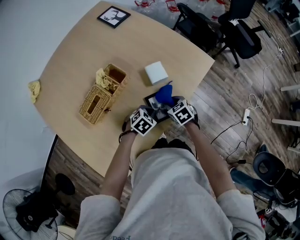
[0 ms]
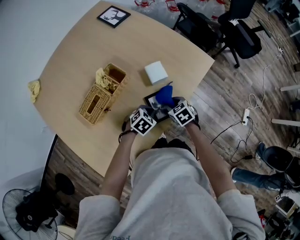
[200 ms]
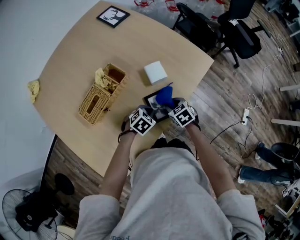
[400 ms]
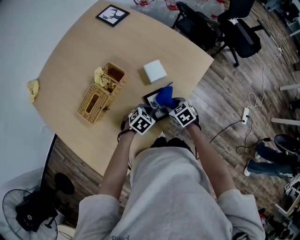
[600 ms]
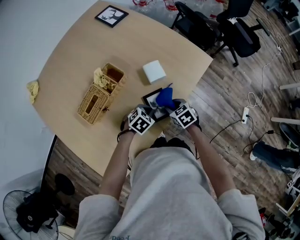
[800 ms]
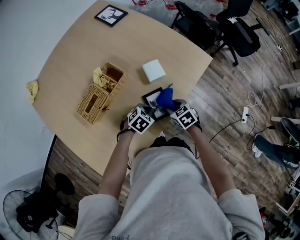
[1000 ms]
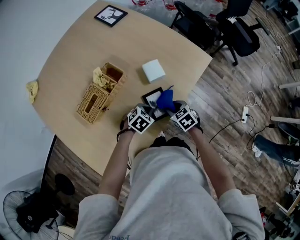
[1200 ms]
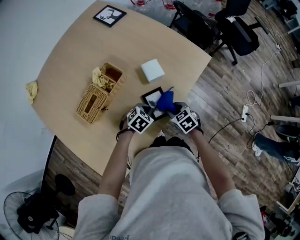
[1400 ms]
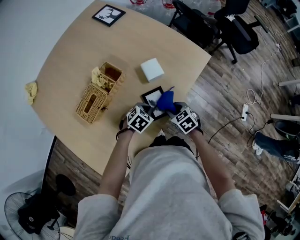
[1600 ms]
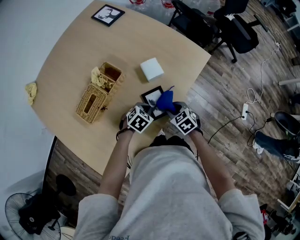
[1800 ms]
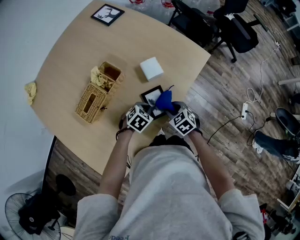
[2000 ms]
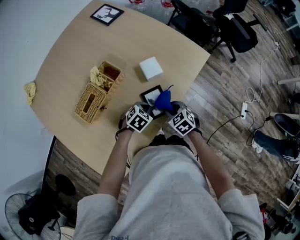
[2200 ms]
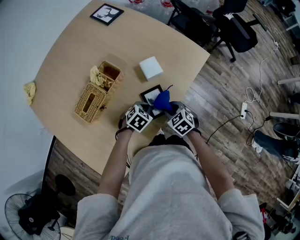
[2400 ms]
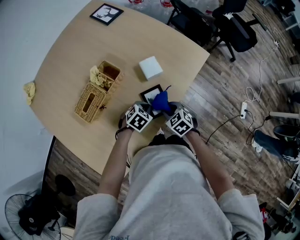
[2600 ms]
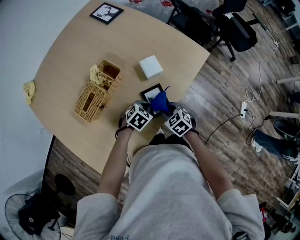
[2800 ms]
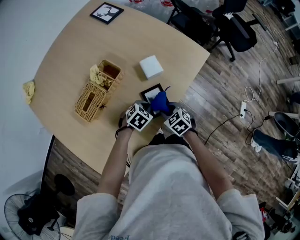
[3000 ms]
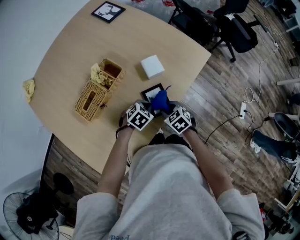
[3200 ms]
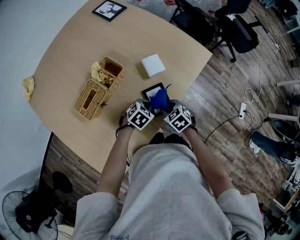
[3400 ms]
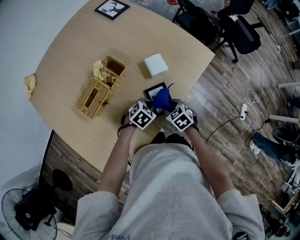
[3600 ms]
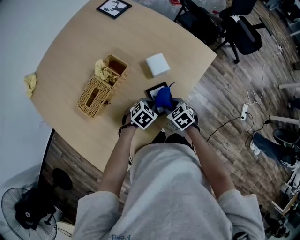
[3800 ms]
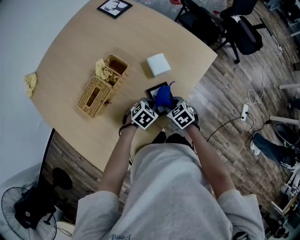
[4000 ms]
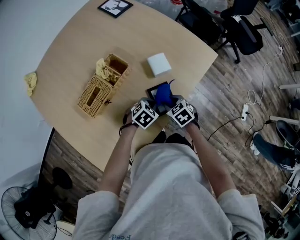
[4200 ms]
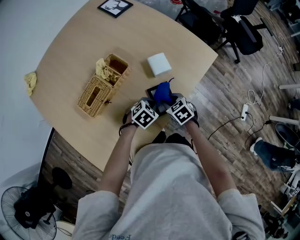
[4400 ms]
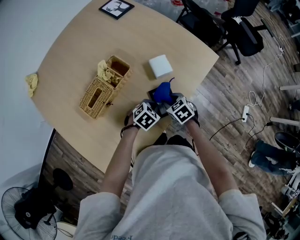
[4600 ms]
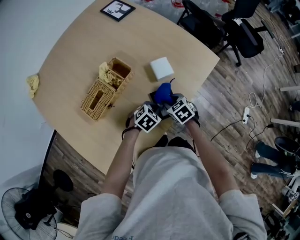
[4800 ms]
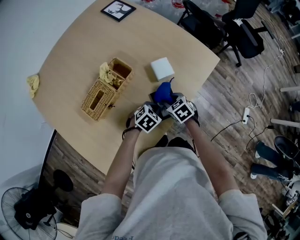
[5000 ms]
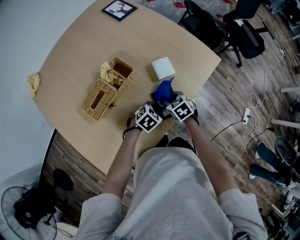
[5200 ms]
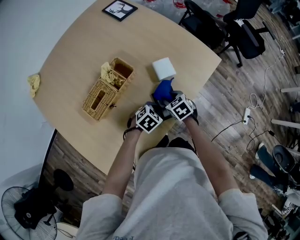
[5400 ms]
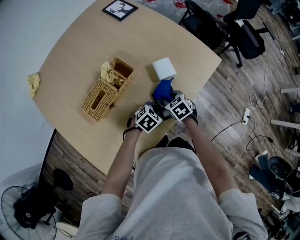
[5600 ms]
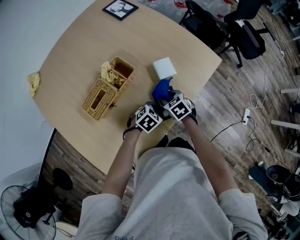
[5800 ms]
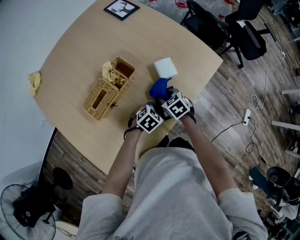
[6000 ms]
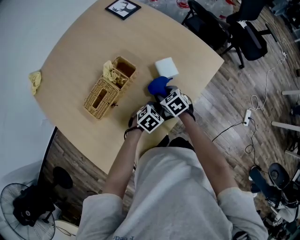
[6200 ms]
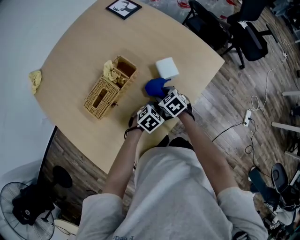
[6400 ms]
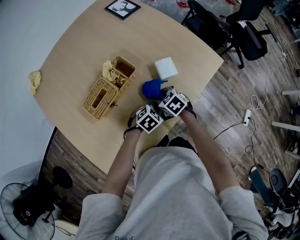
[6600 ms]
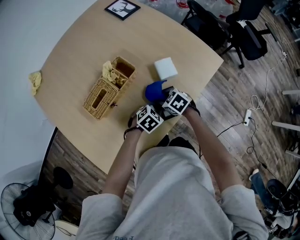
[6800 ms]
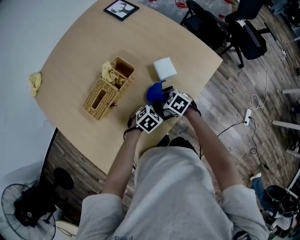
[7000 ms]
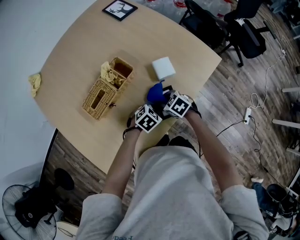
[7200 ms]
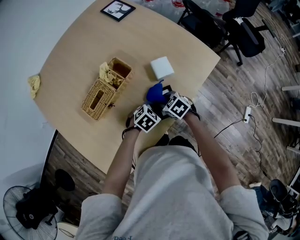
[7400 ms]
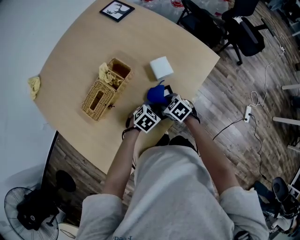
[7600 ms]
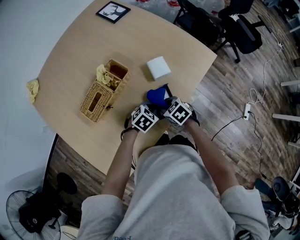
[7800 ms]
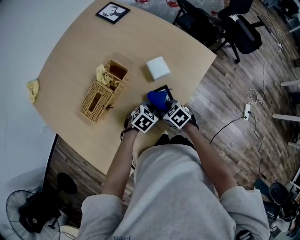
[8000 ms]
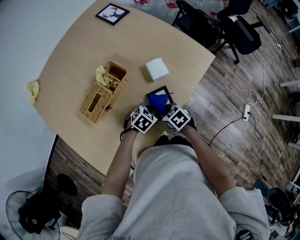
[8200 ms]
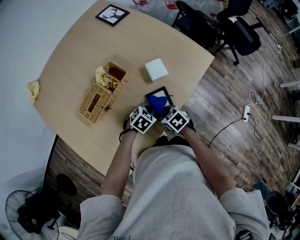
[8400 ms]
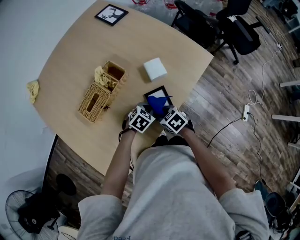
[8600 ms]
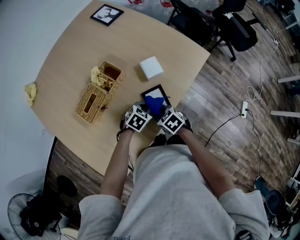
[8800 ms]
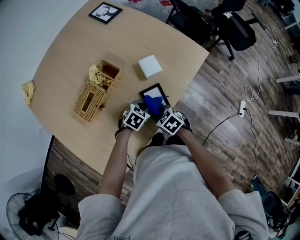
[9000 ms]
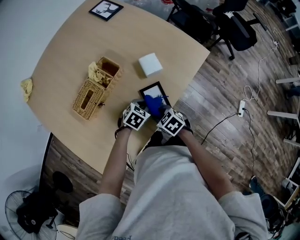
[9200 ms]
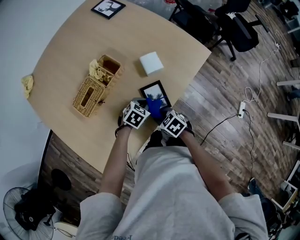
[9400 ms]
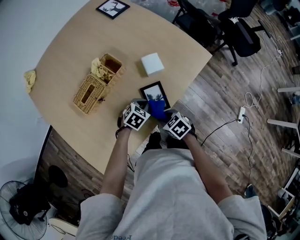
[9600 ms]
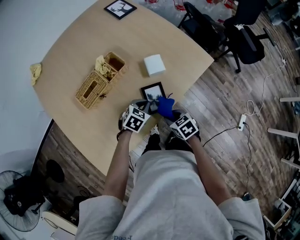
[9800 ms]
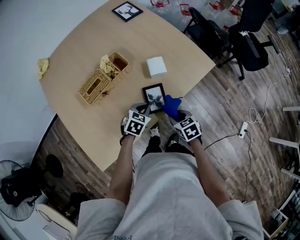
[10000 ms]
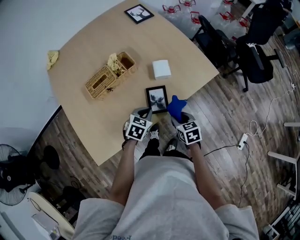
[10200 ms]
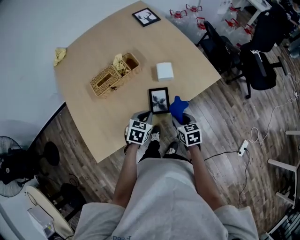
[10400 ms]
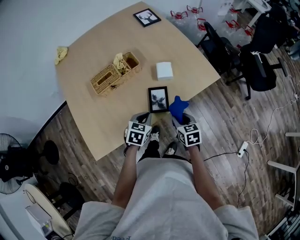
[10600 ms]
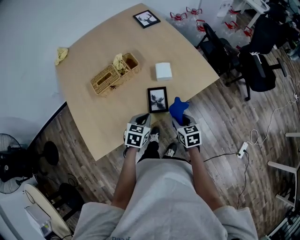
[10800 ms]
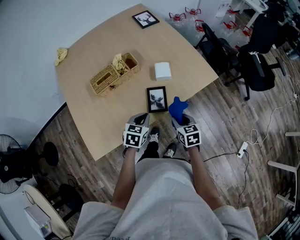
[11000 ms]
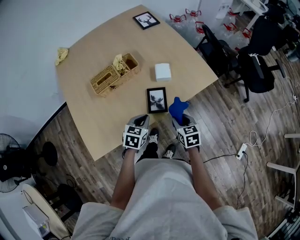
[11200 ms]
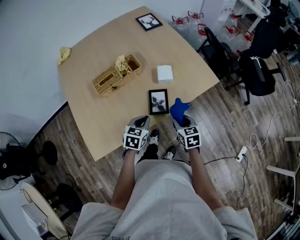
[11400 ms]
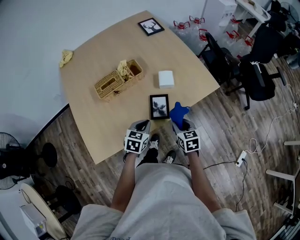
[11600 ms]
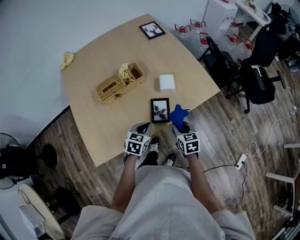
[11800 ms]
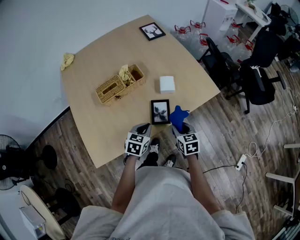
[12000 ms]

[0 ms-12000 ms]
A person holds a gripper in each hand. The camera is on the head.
0 ms to 1600 ms: The right gripper shifts by approximately 5 cm.
1600 ms to 4400 ms: The grippers move only a little.
4400 ms to 6000 ms: The right gripper moves to the left, approximately 5 cm.
6000 ms to 7600 ms: There are only small adjustments of the grippers.
7600 ms to 9000 ms: The right gripper changes place by approximately 10 cm.
9000 ms to 10400 ms: The left gripper travels upward by roughly 10 cm, and changes its angle by some 40 degrees, while the right gripper moves approximately 15 cm, and swivels approximately 20 degrees.
10400 ms to 12000 ms: The grippers move only a little.

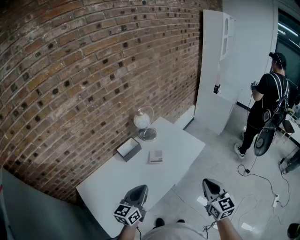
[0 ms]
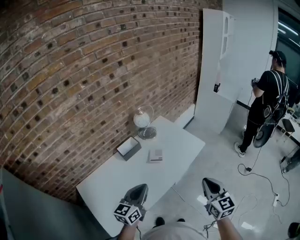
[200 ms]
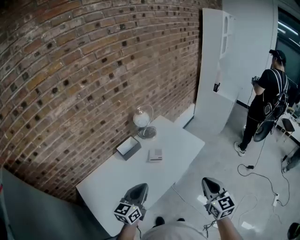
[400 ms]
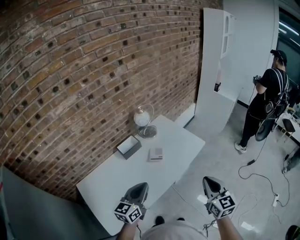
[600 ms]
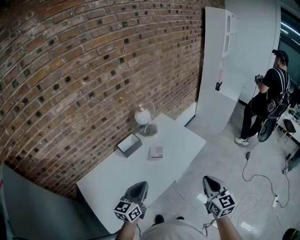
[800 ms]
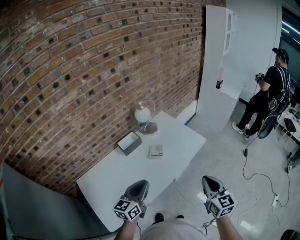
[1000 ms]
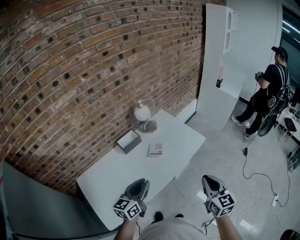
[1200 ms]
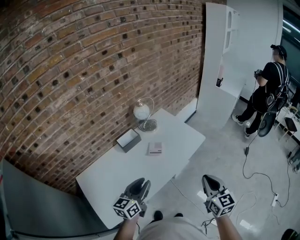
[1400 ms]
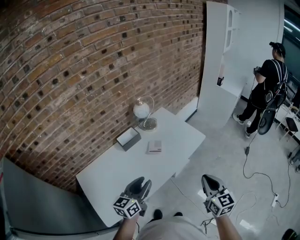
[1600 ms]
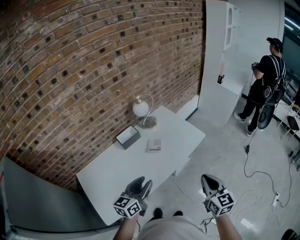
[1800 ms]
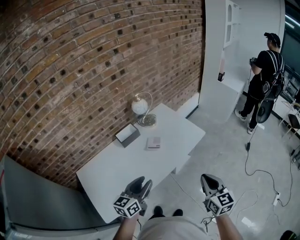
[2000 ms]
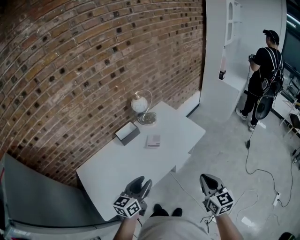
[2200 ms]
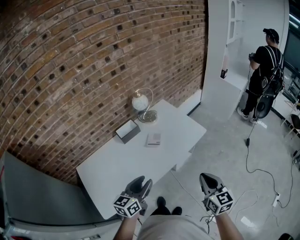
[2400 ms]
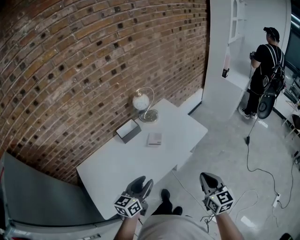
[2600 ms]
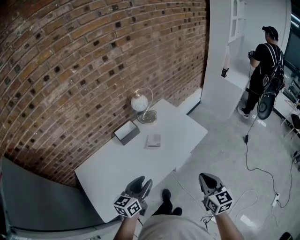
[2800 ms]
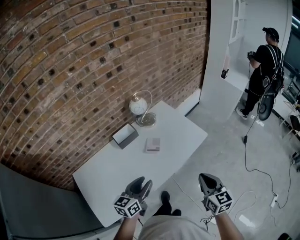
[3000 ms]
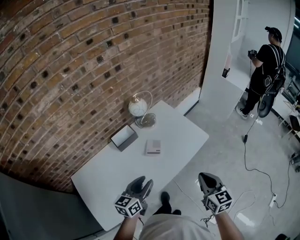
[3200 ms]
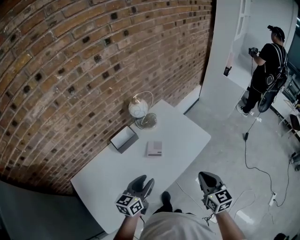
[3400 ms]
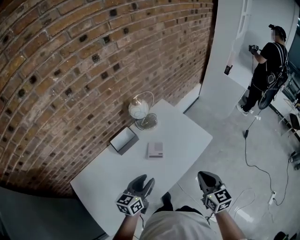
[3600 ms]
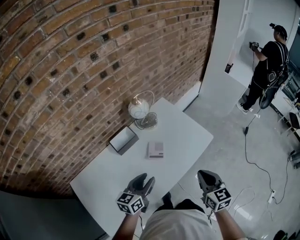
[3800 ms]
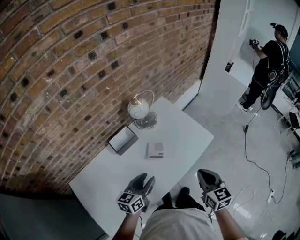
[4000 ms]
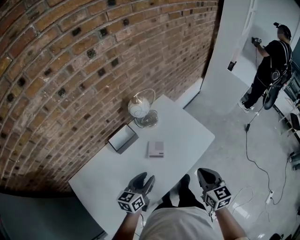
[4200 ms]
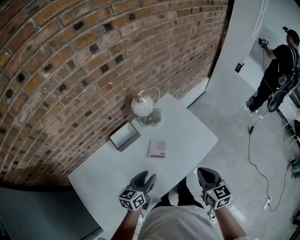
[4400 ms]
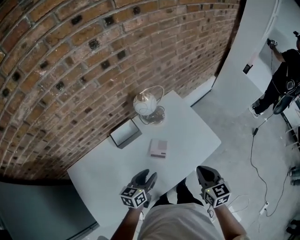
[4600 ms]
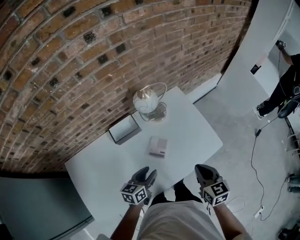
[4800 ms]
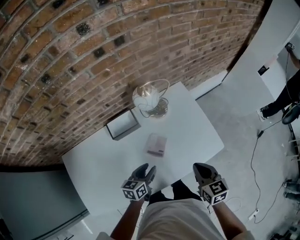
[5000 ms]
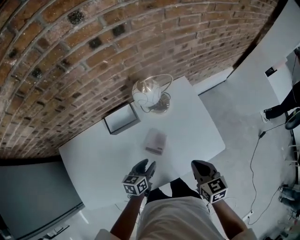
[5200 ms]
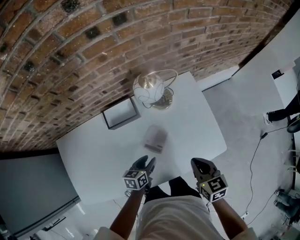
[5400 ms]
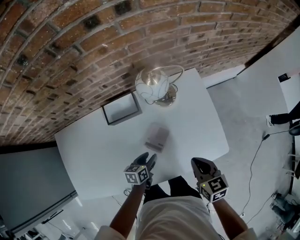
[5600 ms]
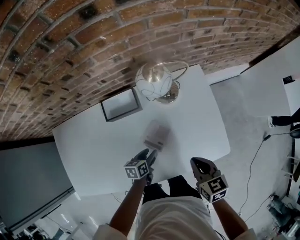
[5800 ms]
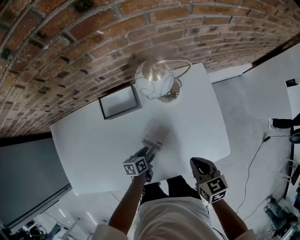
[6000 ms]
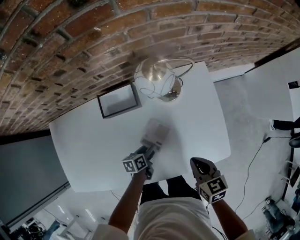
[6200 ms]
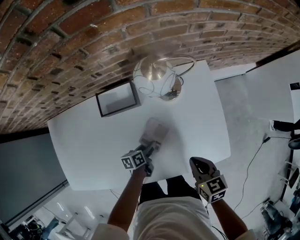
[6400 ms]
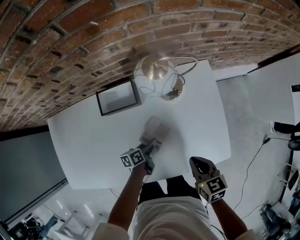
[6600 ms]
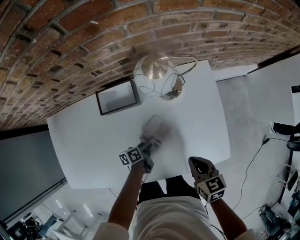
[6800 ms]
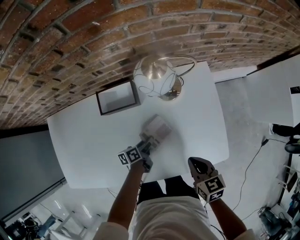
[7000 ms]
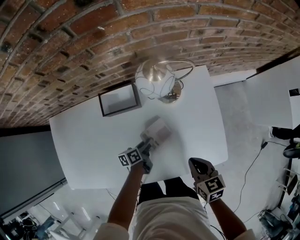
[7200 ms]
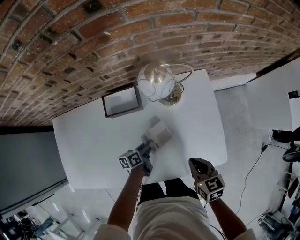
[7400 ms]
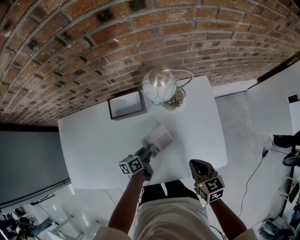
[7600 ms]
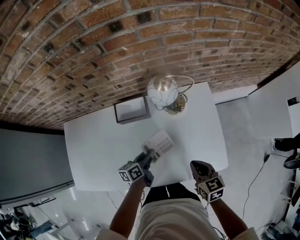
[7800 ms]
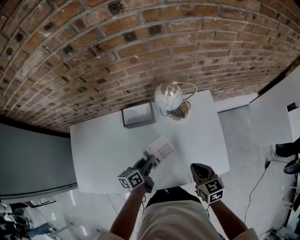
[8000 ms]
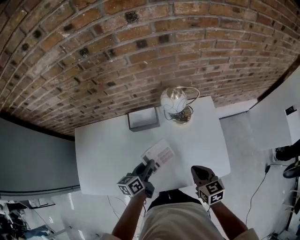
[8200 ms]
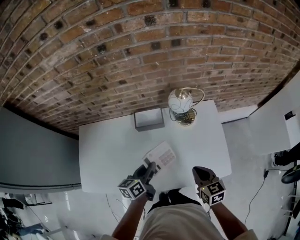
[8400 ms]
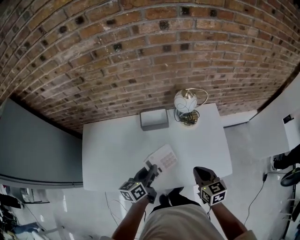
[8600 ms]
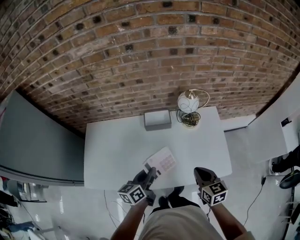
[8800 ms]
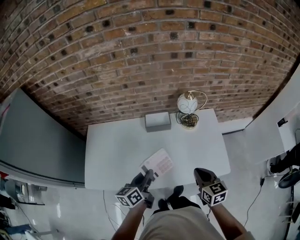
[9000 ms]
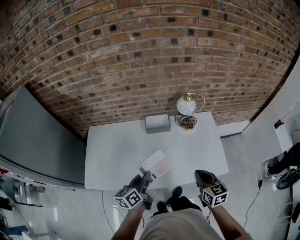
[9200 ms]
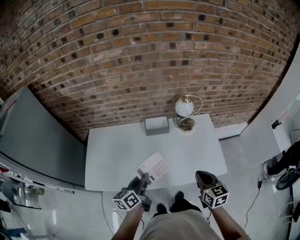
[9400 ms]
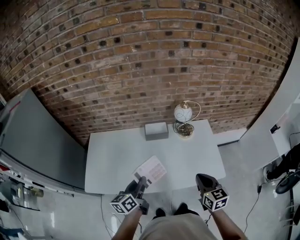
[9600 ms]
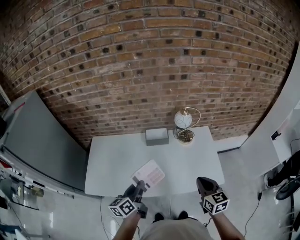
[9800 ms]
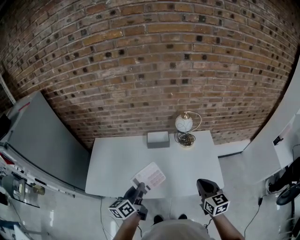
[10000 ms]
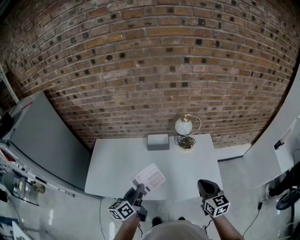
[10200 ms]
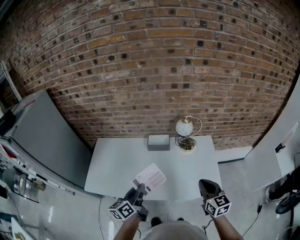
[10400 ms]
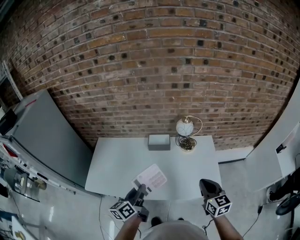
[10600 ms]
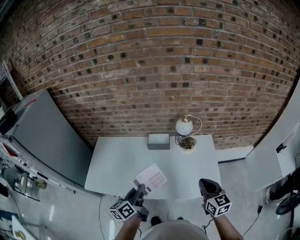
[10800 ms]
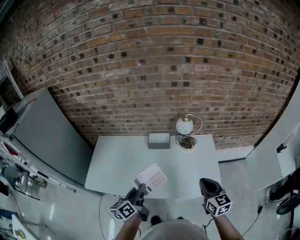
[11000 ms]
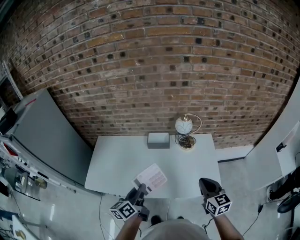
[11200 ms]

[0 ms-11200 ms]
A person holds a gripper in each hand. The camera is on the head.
0 ms to 1600 ms: The left gripper opens up.
1600 ms to 3200 ms: The grippers both shift forward and downward by about 10 cm.
3200 ms to 4800 ms: Both grippers travel together forward and downward, approximately 20 cm.
4800 ms to 6400 ms: The left gripper heads downward, covering roughly 25 cm, and rotates roughly 40 degrees; the right gripper is displaced downward and forward by about 20 cm, and turns by some 30 degrees.
6400 ms to 8000 ms: The left gripper travels upward by approximately 20 cm, rotates approximately 20 degrees, and closes, while the right gripper travels upward by roughly 5 cm.
8000 ms to 9600 ms: The two grippers go about 30 cm backward, upward and to the left. The left gripper turns by approximately 20 degrees.
9600 ms to 11200 ms: Both grippers move to the right, roughly 5 cm.

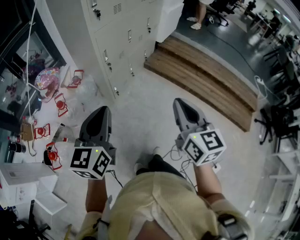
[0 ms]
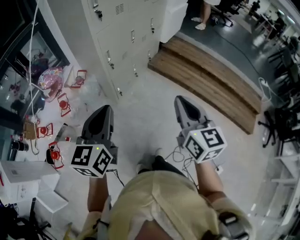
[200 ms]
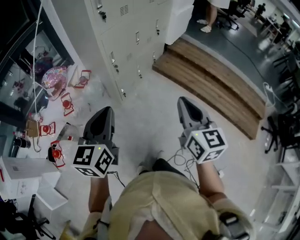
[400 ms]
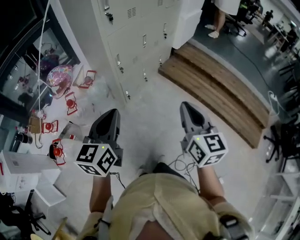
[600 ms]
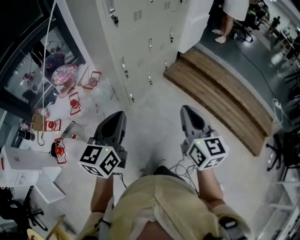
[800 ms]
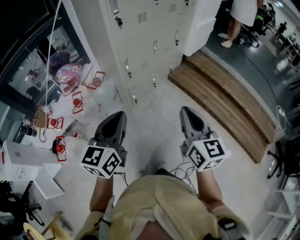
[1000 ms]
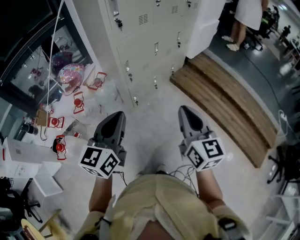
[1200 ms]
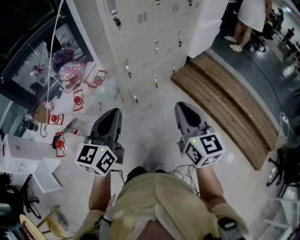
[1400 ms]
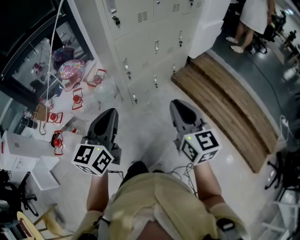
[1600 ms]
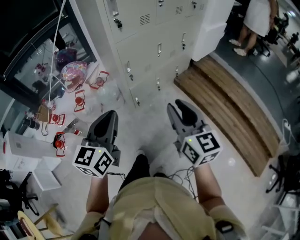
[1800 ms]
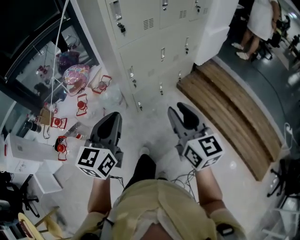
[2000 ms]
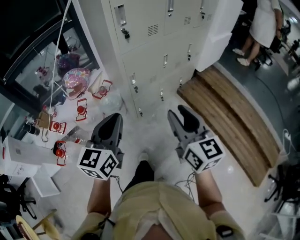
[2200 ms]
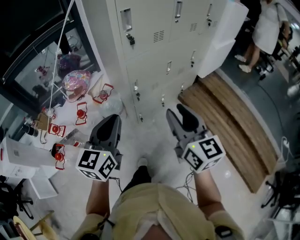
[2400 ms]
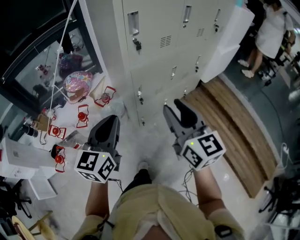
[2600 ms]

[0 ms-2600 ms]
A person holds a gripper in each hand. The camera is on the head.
0 ms to 1200 ms: The right gripper heads forward, covering some 10 cm, while the left gripper shifts roughly 10 cm forward and to the right.
1200 ms to 2600 ms: The left gripper shifts about 15 cm forward. The right gripper heads forward and to the left, covering approximately 20 cm, and opens its fingers.
